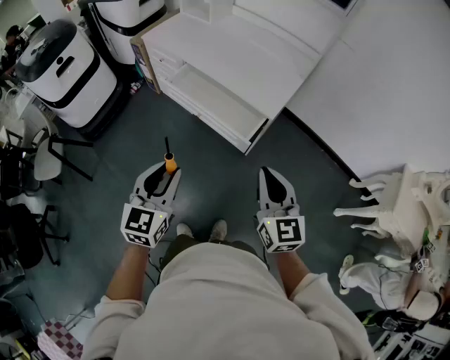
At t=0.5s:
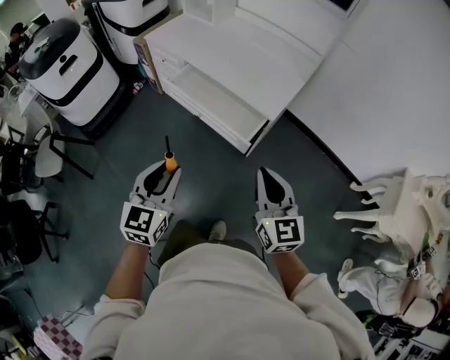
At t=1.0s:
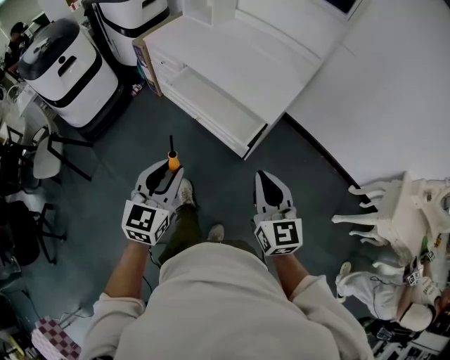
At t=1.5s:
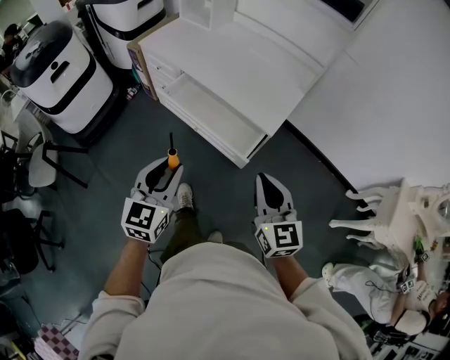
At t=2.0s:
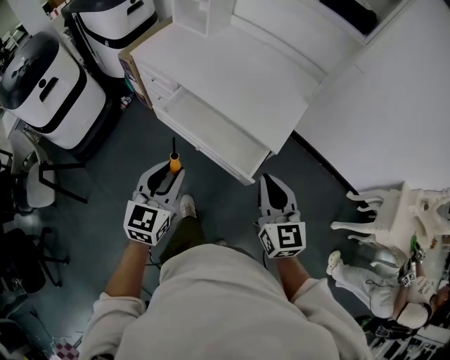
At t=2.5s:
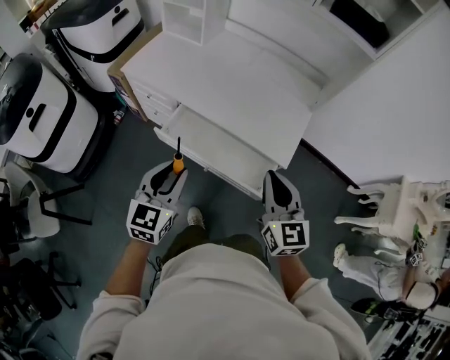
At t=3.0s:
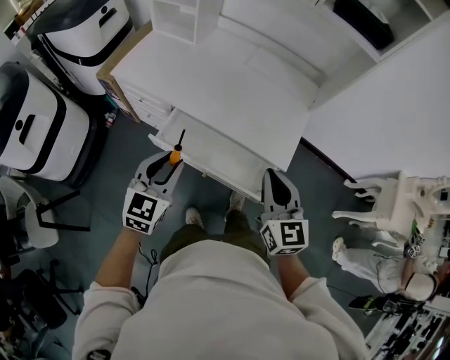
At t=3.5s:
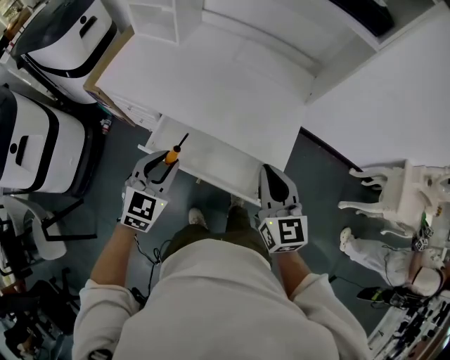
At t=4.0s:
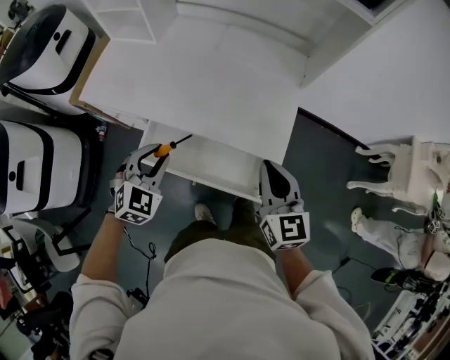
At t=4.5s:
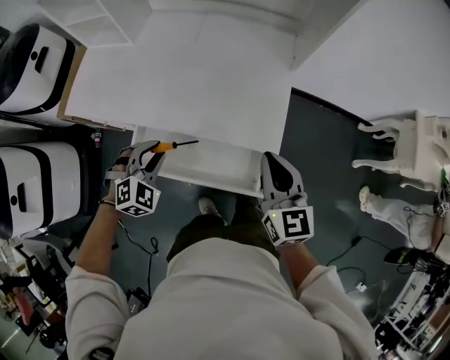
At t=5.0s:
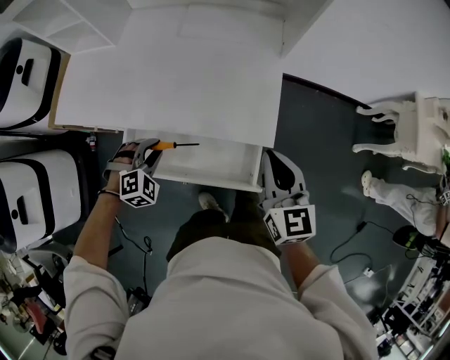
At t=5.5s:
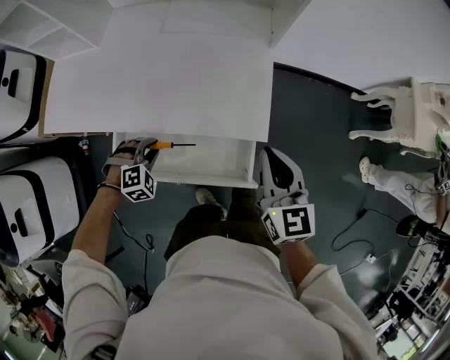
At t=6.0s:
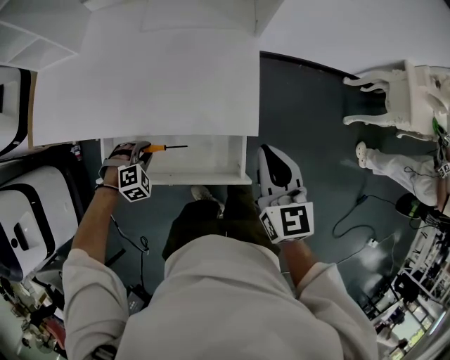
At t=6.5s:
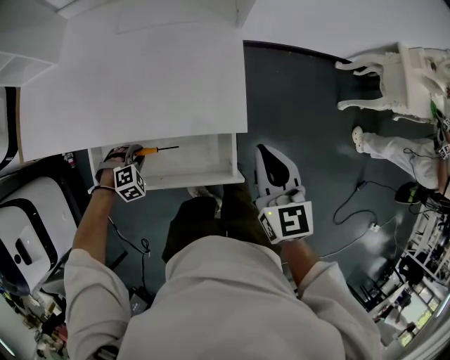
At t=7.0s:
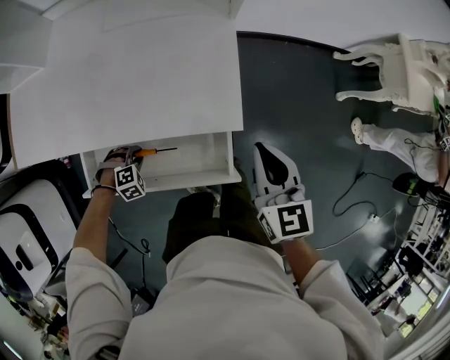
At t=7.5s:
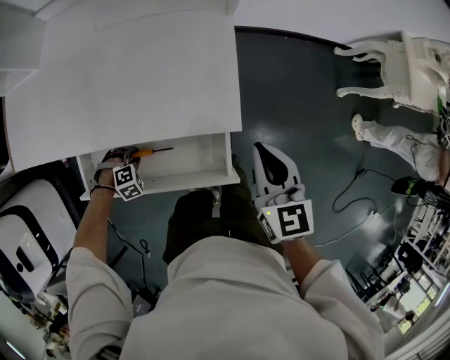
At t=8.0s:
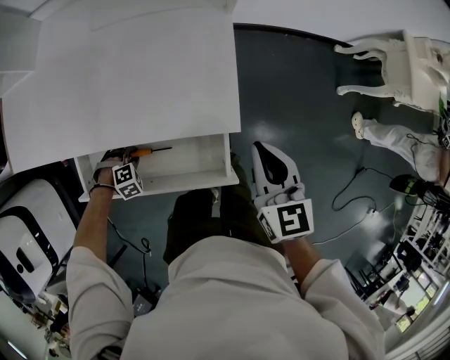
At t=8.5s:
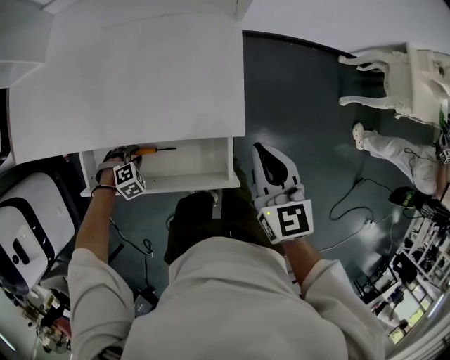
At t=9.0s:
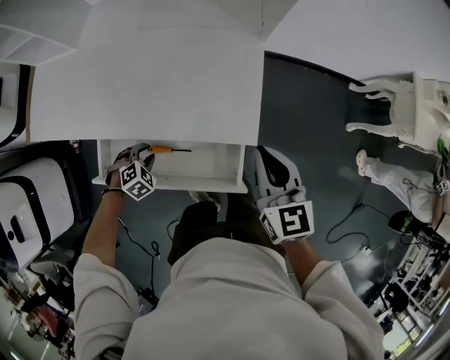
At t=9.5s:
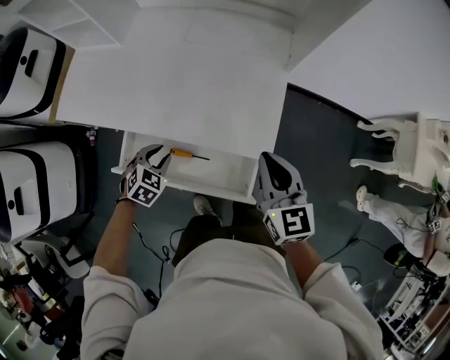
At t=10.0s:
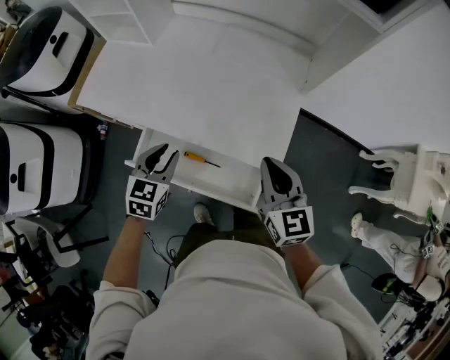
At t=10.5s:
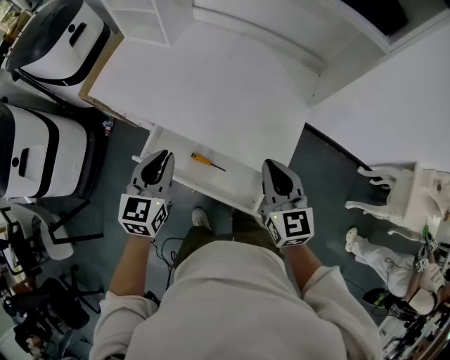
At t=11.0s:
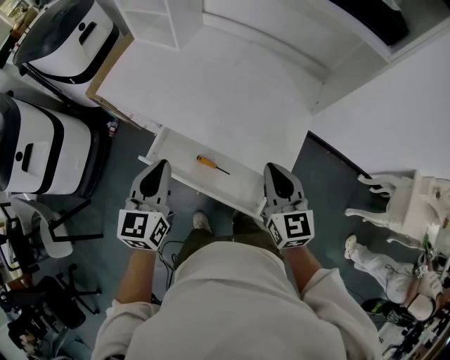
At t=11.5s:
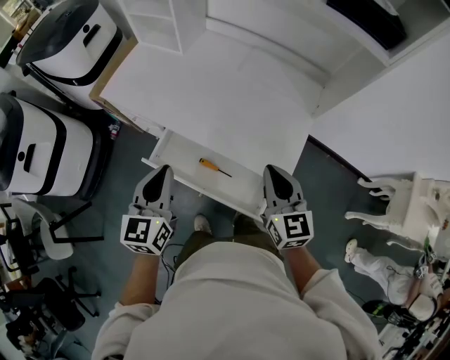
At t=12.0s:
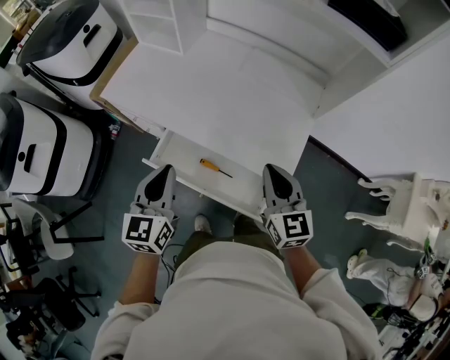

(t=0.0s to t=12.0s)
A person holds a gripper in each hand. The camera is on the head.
t=0.0s - t=2.0s: Both grippers move forward, about 15 cm.
t=2.0s - t=4.0s: Both grippers move forward, about 25 cm. The left gripper turns by approximately 40 degrees.
t=4.0s - t=6.0s: The left gripper heads downward, covering some 25 cm, and angles its fingers downward, by about 30 degrees, while the right gripper heads to the right and downward, covering roughly 10 cm.
t=6.0s - t=8.0s: The right gripper moves downward, some 5 cm. Meanwhile the left gripper is displaced downward by approximately 10 cm.
t=8.0s - t=10.0s: The right gripper ends up some 15 cm from where it was, and rotates about 30 degrees. The left gripper goes about 35 cm upward, and points its fingers about 50 degrees further upward.
t=10.0s - t=12.0s: The left gripper goes approximately 15 cm upward, backward and to the left, turns by roughly 30 degrees, and closes its fingers; the right gripper travels to the left by about 5 cm.

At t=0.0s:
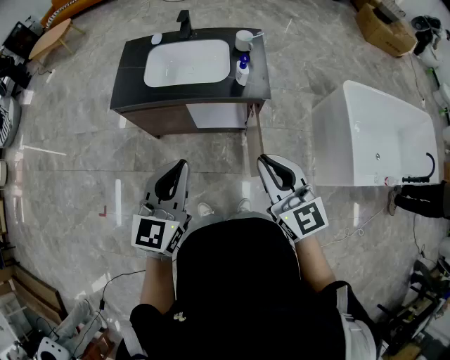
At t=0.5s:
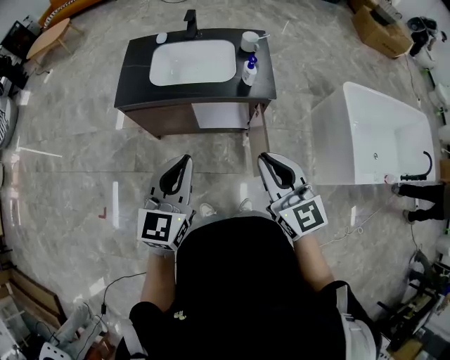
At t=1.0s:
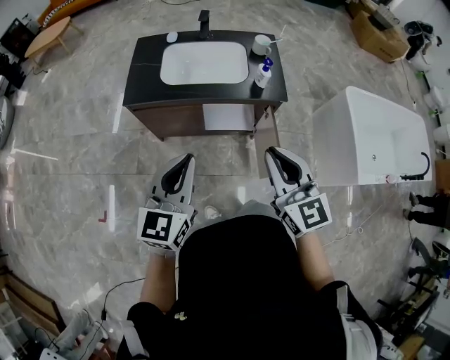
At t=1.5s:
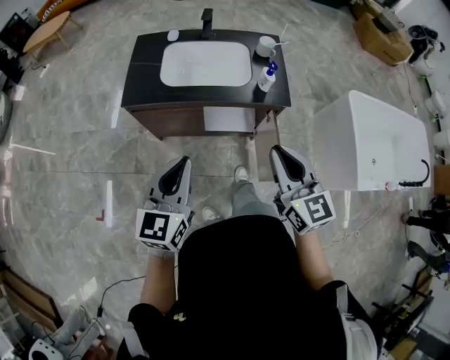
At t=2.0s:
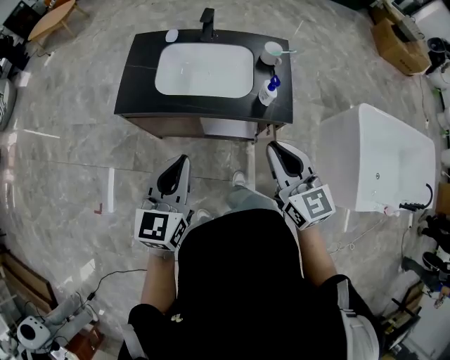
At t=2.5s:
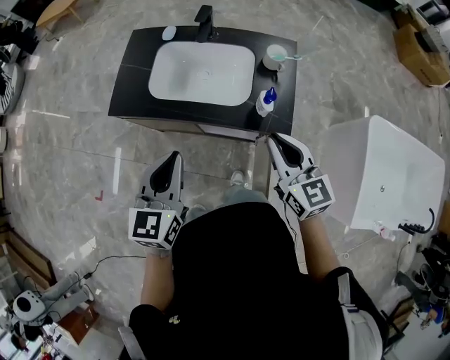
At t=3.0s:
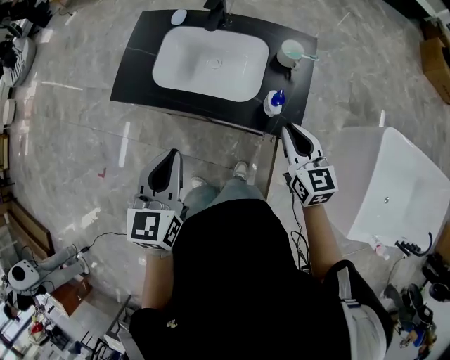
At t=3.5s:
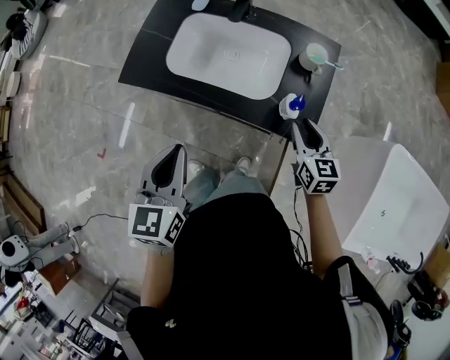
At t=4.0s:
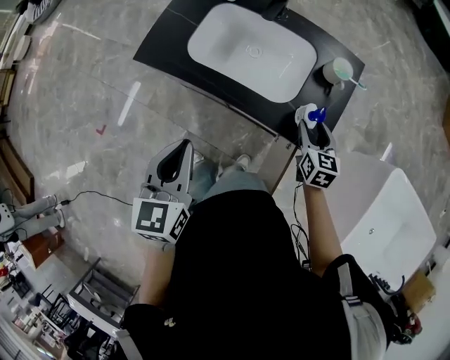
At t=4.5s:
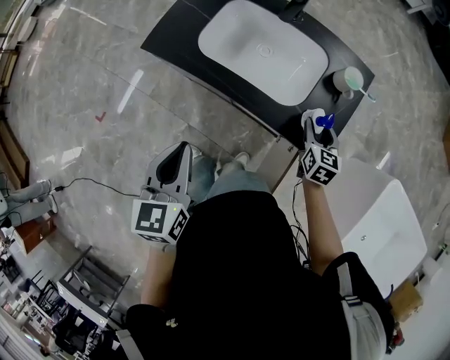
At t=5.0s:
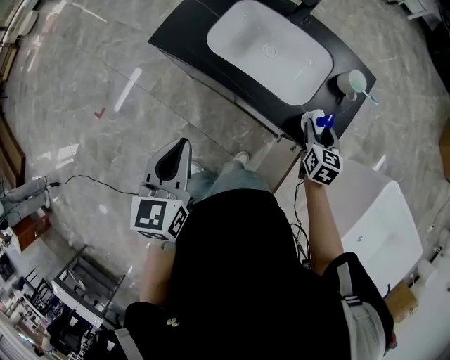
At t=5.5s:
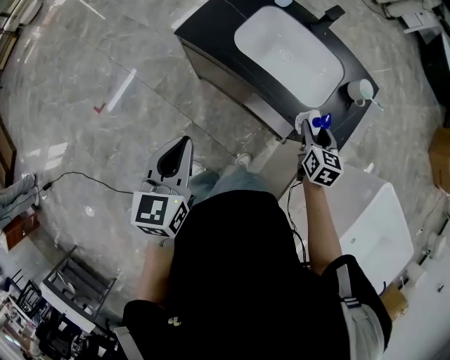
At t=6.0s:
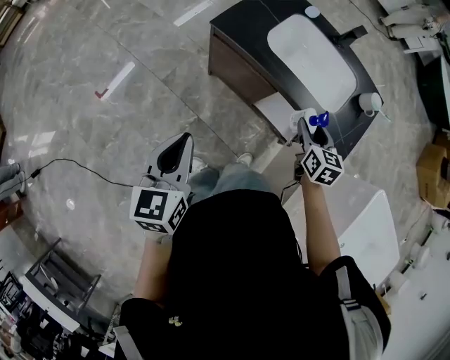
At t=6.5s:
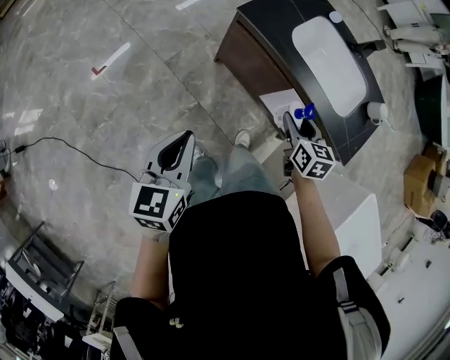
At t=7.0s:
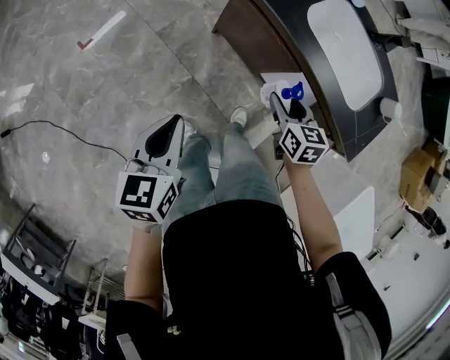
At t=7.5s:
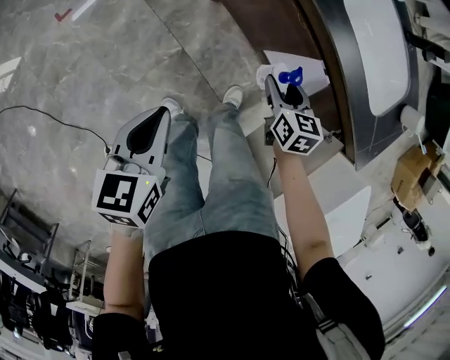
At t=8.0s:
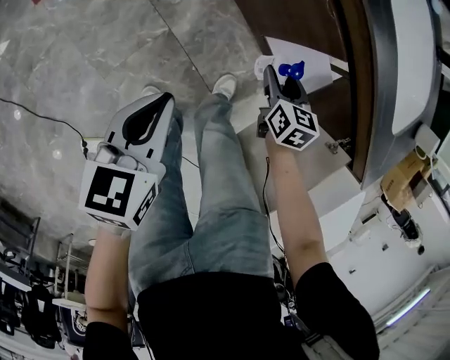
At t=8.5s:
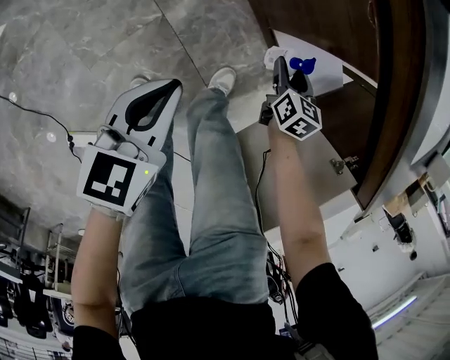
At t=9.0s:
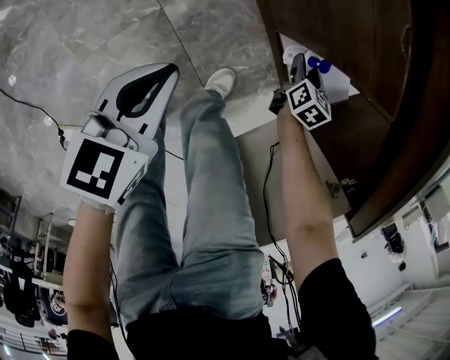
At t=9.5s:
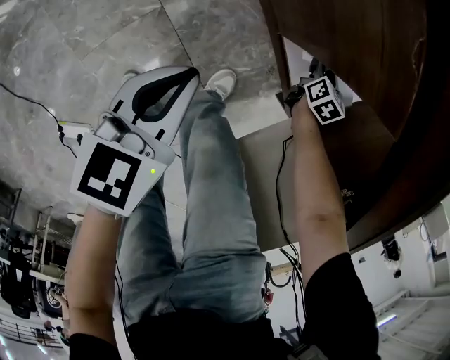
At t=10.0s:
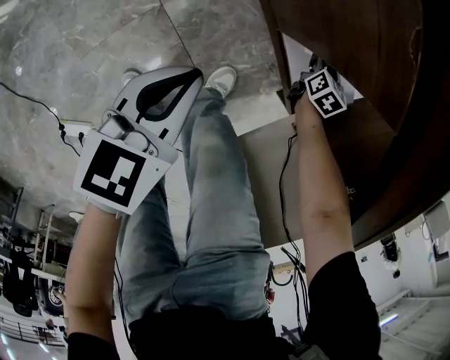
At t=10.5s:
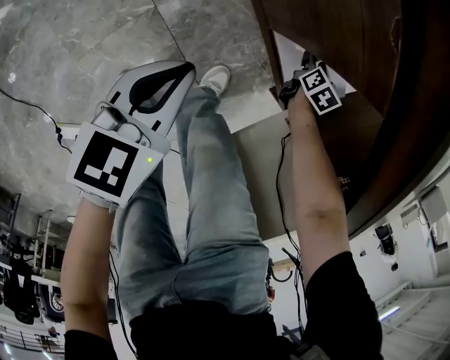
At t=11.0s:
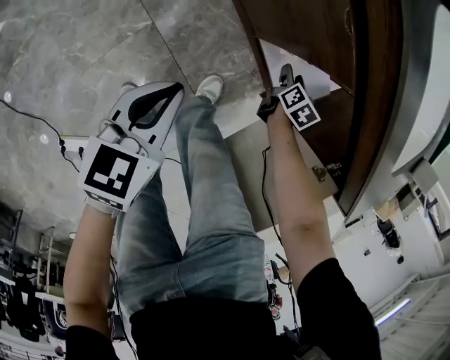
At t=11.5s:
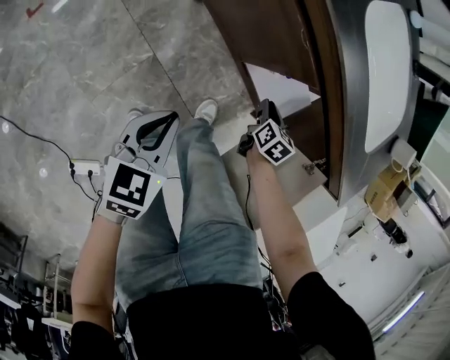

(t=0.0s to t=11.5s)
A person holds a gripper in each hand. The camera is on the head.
t=0.0s - t=2.0s: The right gripper is displaced forward by roughly 15 cm, while the left gripper shifts roughly 15 cm forward and to the left.
t=2.0s - t=4.0s: The left gripper heads forward and downward, covering roughly 10 cm, and swivels about 30 degrees. Meanwhile the right gripper is displaced downward, forward and to the right by about 35 cm, swivels roughly 20 degrees, and opens its fingers.
t=4.0s - t=6.0s: The right gripper heads to the left, covering roughly 25 cm. The left gripper moves to the left and backward, some 25 cm.
t=6.0s - t=7.5s: The left gripper travels downward by about 25 cm, and changes its angle by about 20 degrees; the right gripper is displaced downward and to the left by approximately 30 cm.
t=7.5s - t=9.5s: Both grippers move downward, to the right and forward, roughly 40 cm. The right gripper changes its angle by some 20 degrees.
t=9.5s - t=11.5s: The right gripper moves upward and backward, approximately 25 cm, and closes; the left gripper heads upward and backward, covering approximately 15 cm.

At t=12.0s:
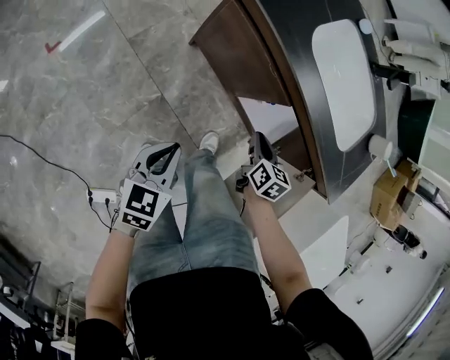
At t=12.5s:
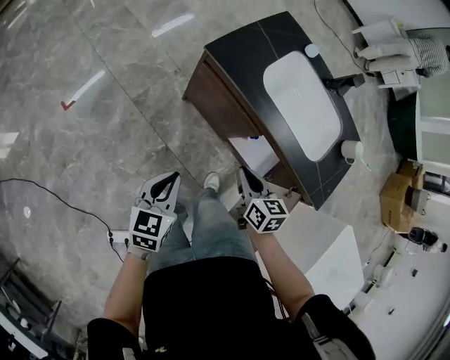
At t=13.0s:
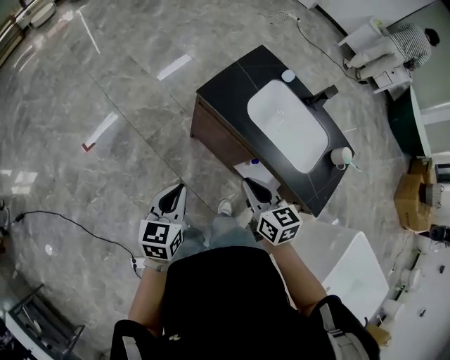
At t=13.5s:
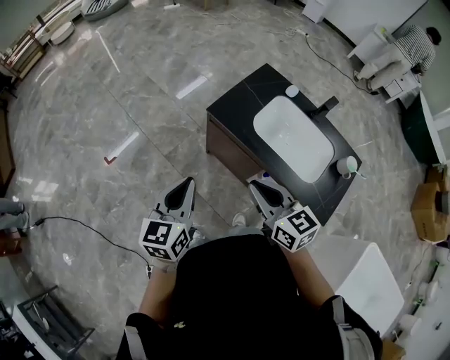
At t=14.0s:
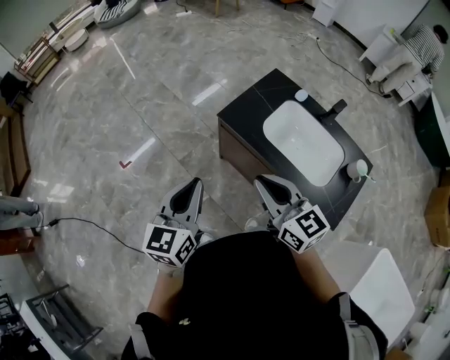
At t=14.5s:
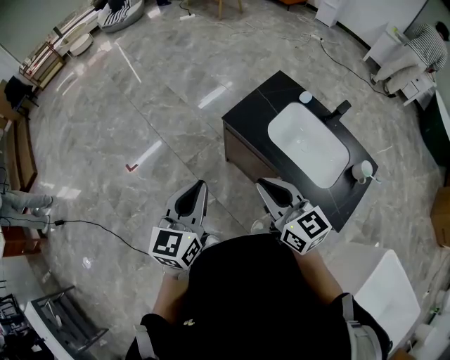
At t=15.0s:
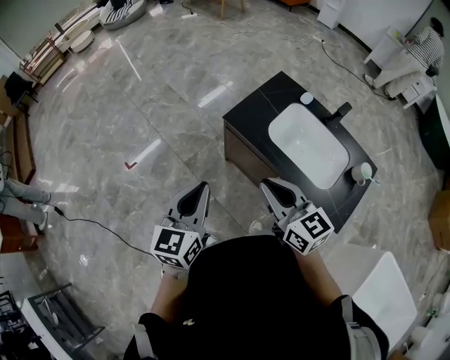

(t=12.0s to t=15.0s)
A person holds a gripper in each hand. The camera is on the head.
t=12.0s - t=13.5s: The two grippers go about 40 cm upward. The right gripper rotates roughly 40 degrees; the left gripper rotates roughly 20 degrees.
t=13.5s - t=15.0s: The grippers stay close to where they were, moving slightly.
